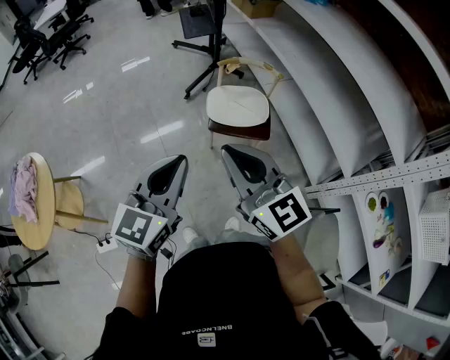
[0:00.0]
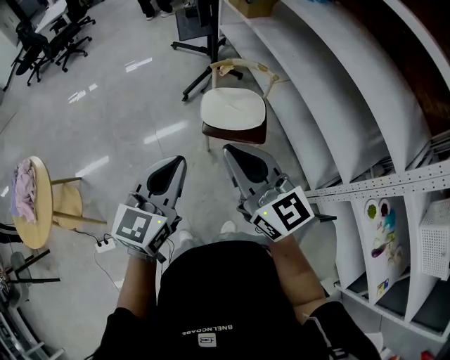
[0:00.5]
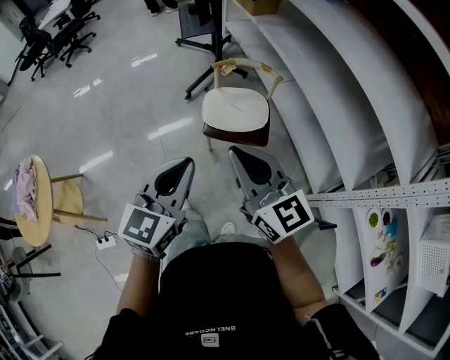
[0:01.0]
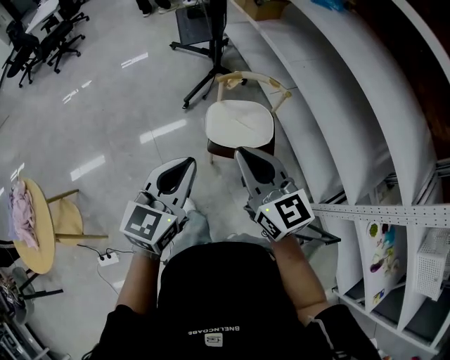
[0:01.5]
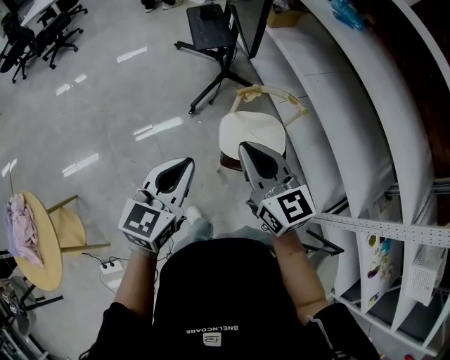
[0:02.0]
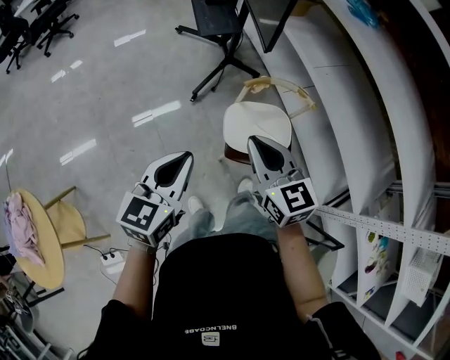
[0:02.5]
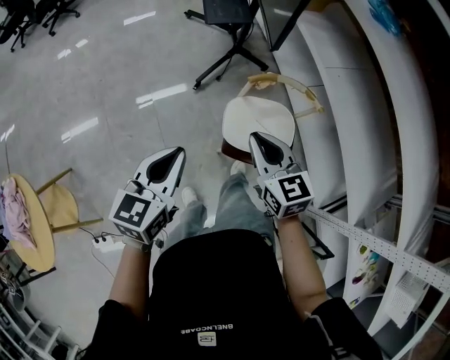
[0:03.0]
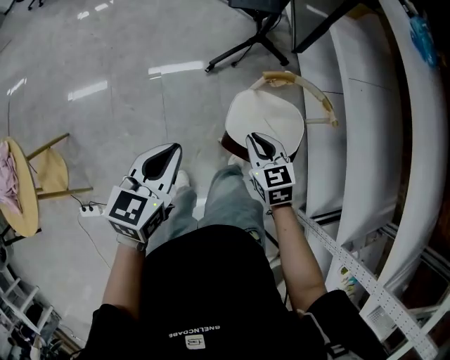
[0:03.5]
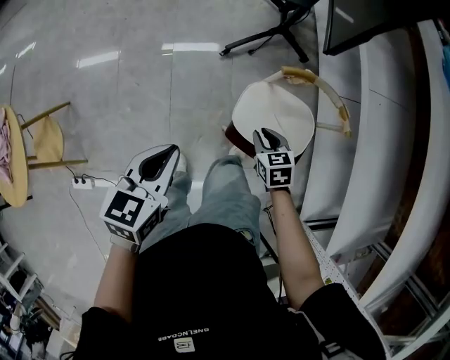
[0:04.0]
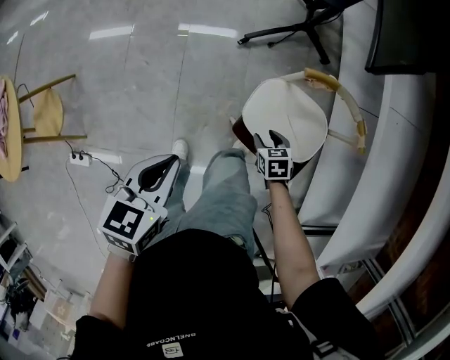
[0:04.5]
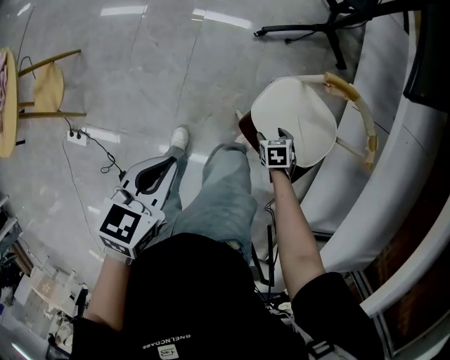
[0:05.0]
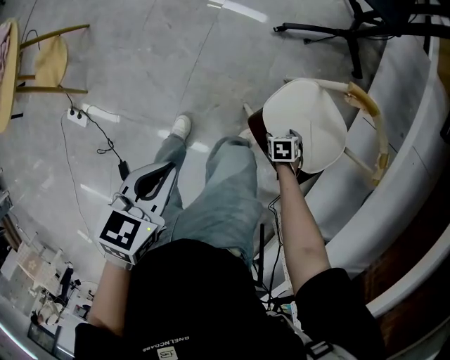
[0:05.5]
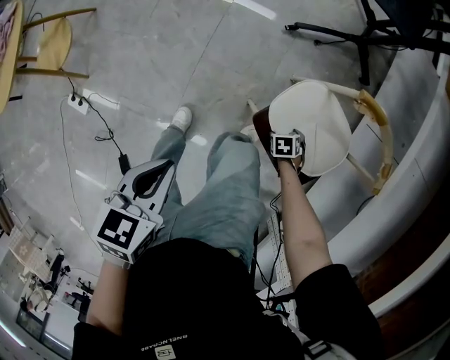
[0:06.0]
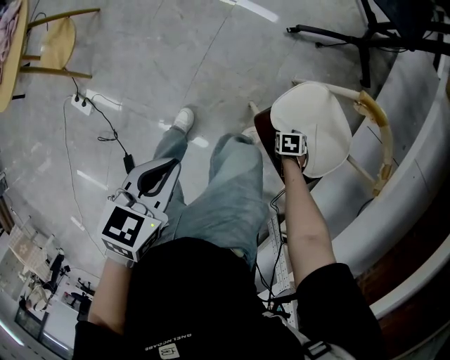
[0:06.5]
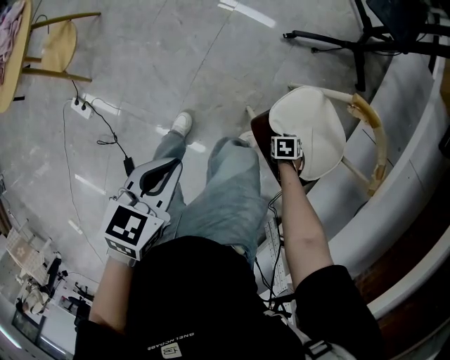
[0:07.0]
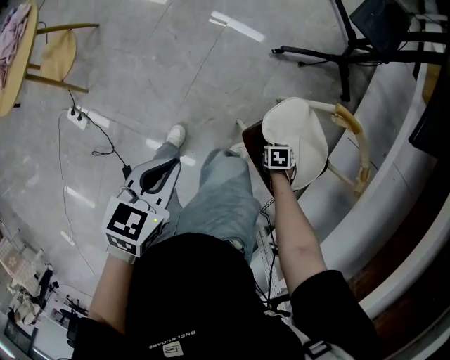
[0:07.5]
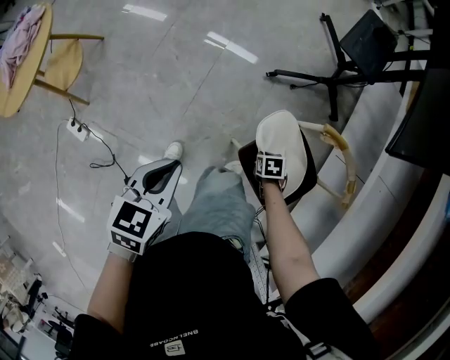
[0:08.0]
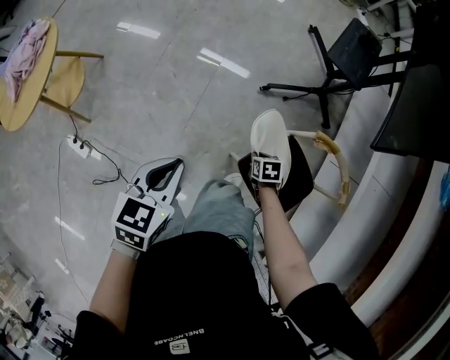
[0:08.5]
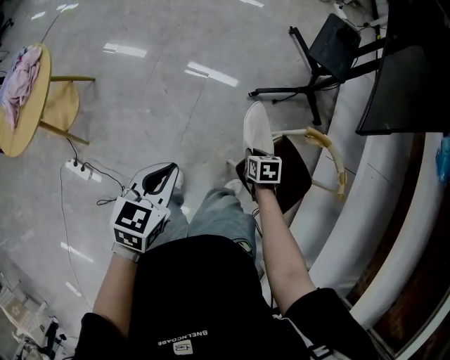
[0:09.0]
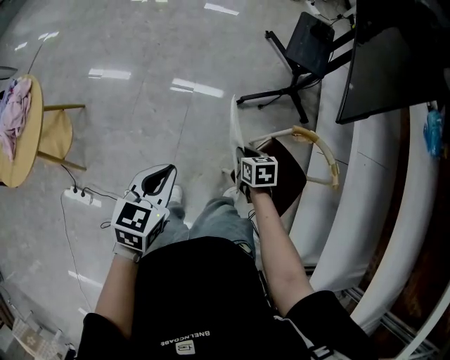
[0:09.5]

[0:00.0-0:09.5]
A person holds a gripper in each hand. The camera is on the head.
0:00.0 to 0:02.0: The grippers both shift forward by some 30 cm.
0:02.0 to 0:04.0: The right gripper shifts about 35 cm downward, and points its fingers about 40 degrees further downward; the left gripper shifts roughly 15 cm downward, and turns by some 30 degrees.
0:04.0 to 0:05.5: The left gripper shifts some 10 cm downward, and changes its angle by about 20 degrees; the right gripper heads downward, covering some 25 cm, tips its fingers downward by about 30 degrees, and opens up.
0:05.5 to 0:07.5: The right gripper closes up.
0:07.5 to 0:09.5: The right gripper heads upward, covering roughly 25 cm, and points its fingers about 30 degrees further upward. The left gripper travels upward by roughly 10 cm.

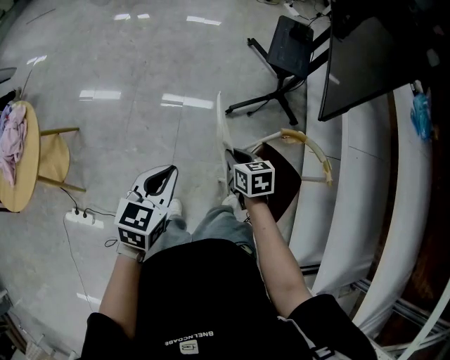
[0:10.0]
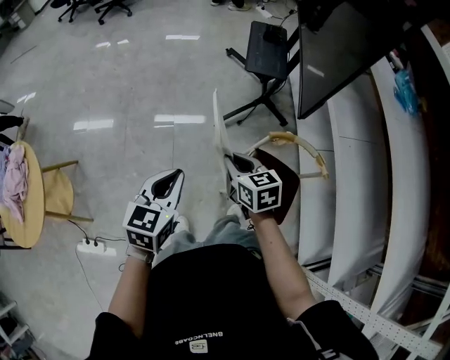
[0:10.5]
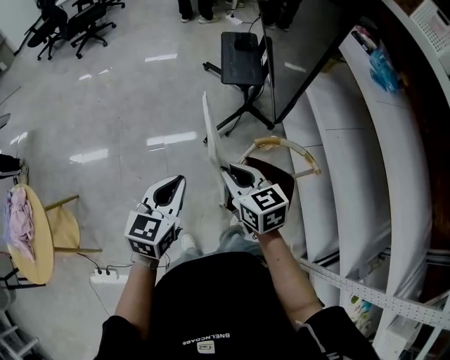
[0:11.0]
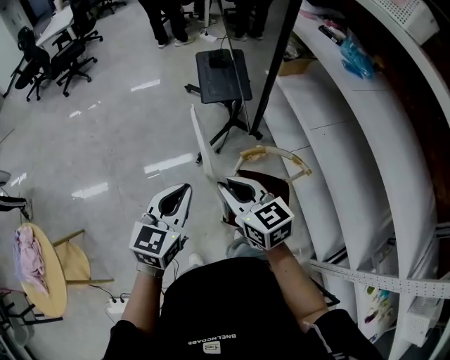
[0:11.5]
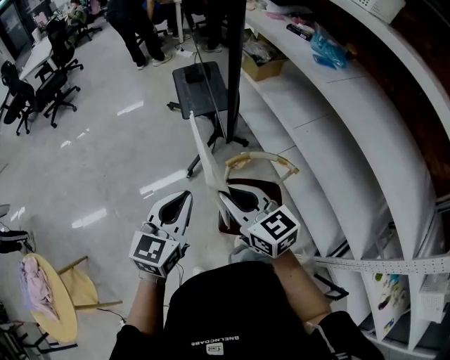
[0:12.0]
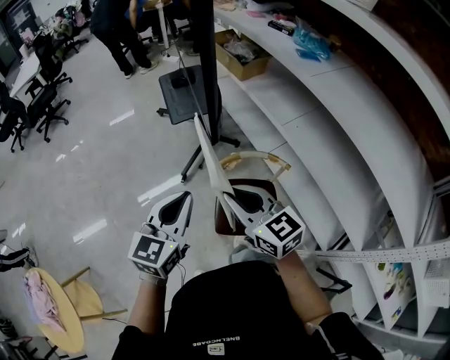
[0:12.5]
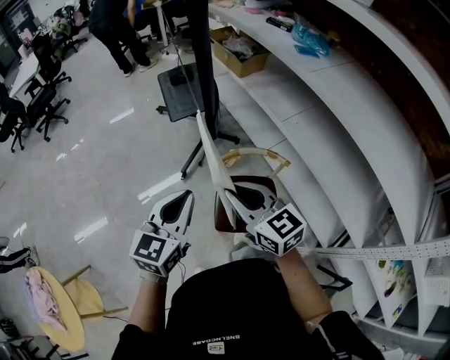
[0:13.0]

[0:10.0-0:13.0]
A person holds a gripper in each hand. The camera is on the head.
0:10.0 to 0:11.5: The right gripper travels upward by some 25 cm, and rotates some 30 degrees; the left gripper heads to the right, upward and forward, covering roughly 20 cm, and rotates roughly 30 degrees.
0:11.5 to 0:13.0: The two grippers go about 10 cm to the right.

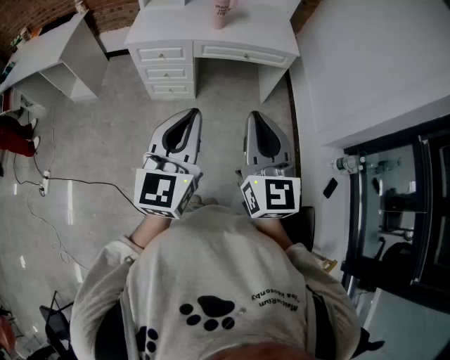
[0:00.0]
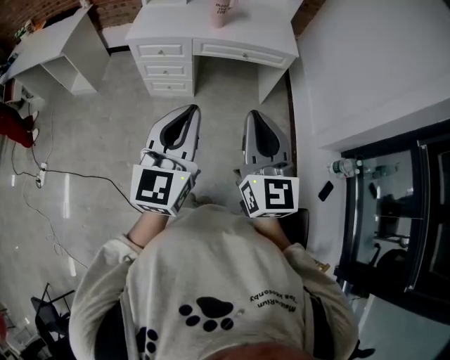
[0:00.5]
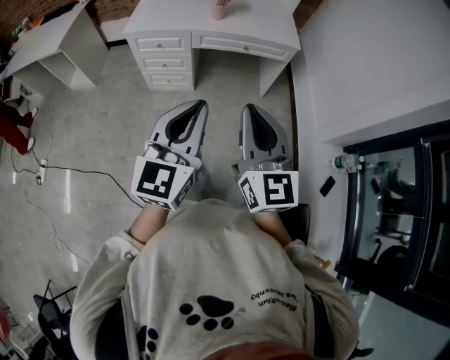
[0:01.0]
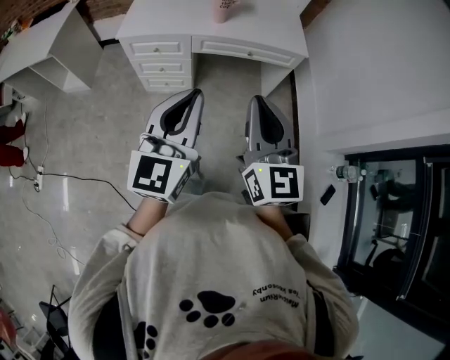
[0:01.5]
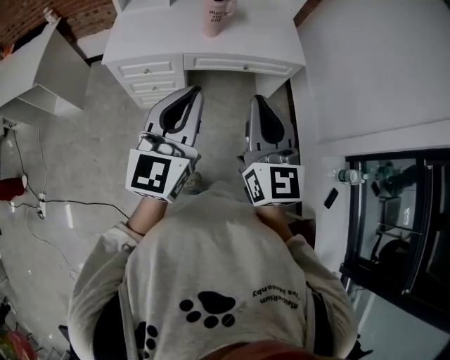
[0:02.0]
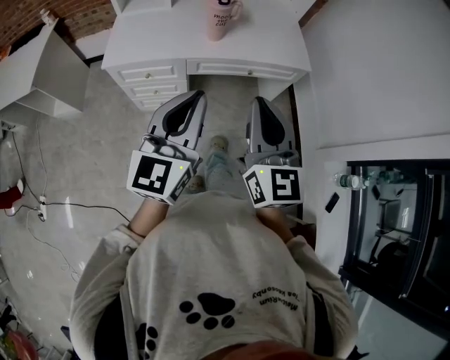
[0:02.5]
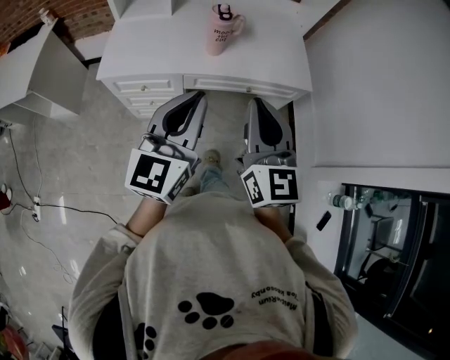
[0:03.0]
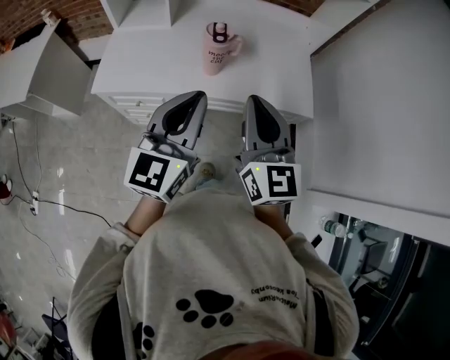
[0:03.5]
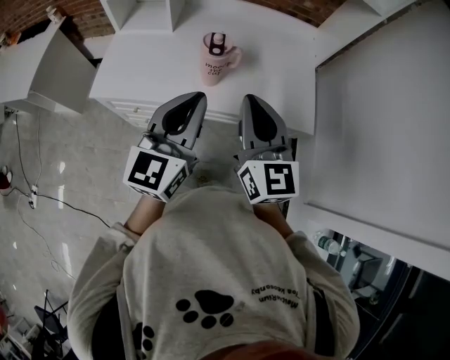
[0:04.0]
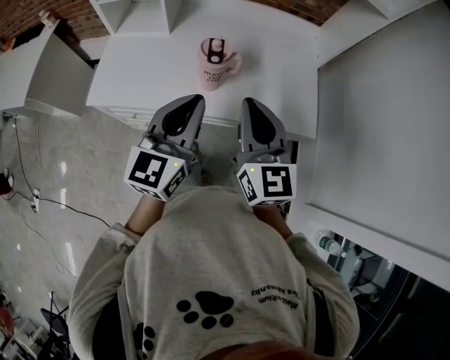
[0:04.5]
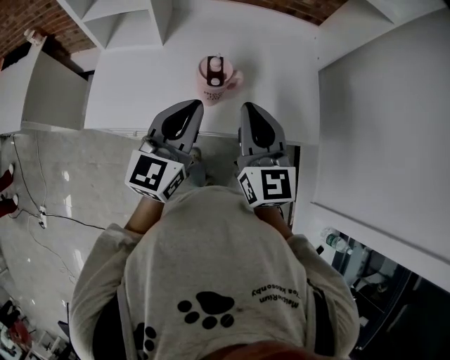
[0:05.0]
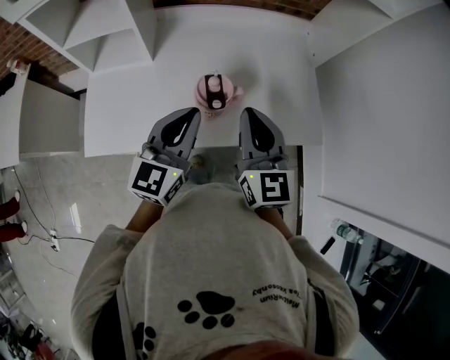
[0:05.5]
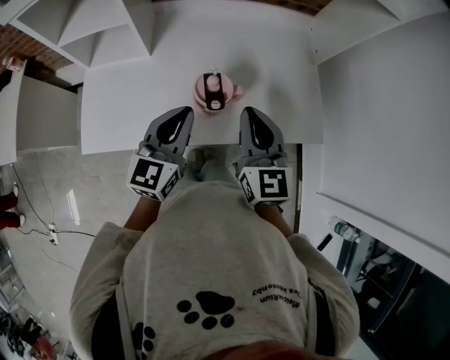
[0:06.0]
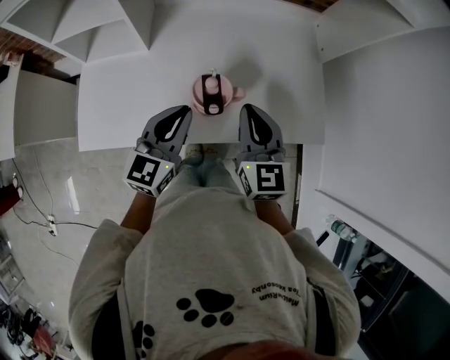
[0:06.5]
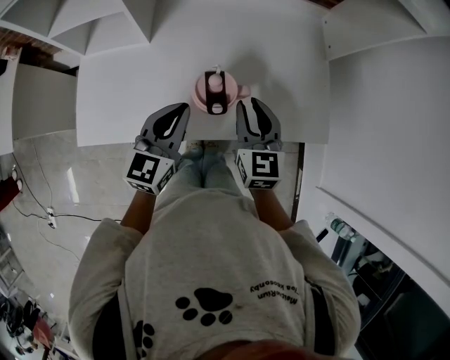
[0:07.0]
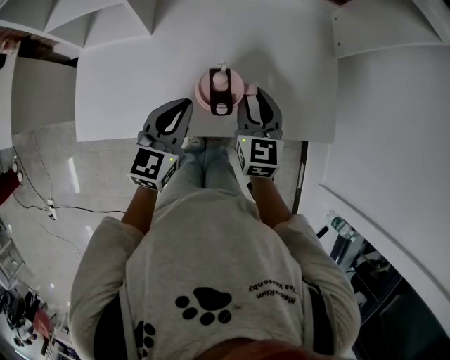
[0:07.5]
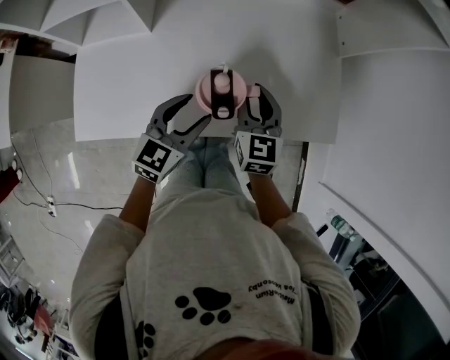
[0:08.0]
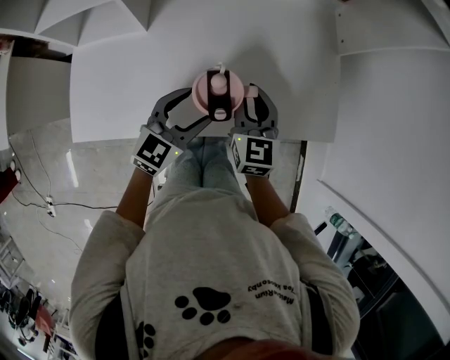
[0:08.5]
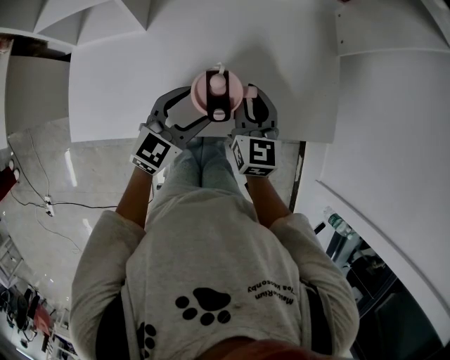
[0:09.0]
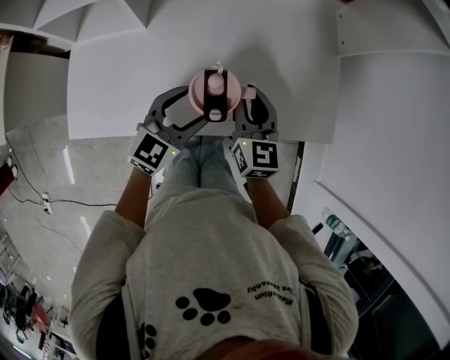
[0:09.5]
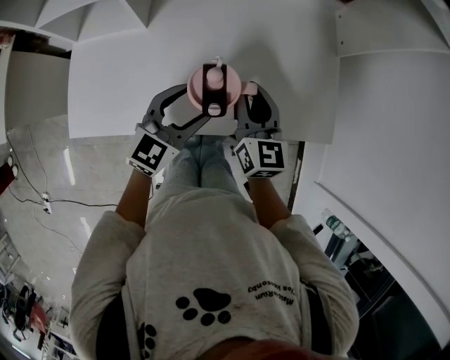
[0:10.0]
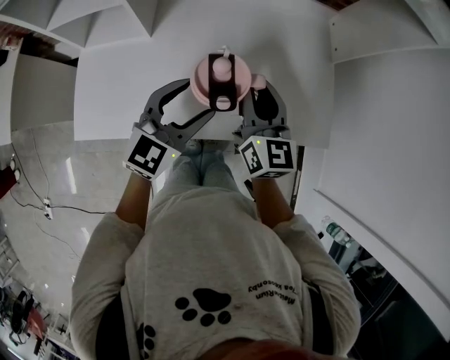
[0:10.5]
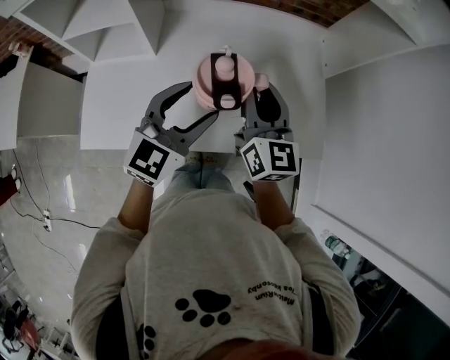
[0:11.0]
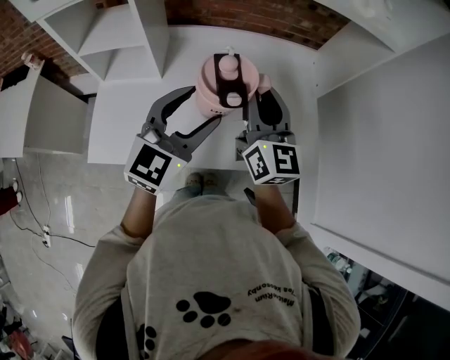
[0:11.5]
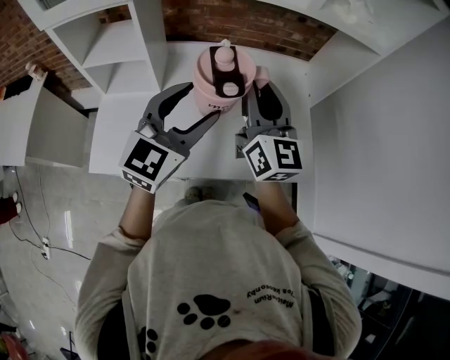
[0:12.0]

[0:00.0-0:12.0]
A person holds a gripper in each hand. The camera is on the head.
0:00.0 to 0:02.0: Both grippers move forward, roughly 25 cm.
0:02.0 to 0:04.0: Both grippers travel together forward, approximately 30 cm.
0:04.0 to 0:06.0: Both grippers travel together forward and downward, some 20 cm.
0:06.0 to 0:08.0: The left gripper moves downward, roughly 10 cm, and opens up. The right gripper goes approximately 15 cm downward and forward, and opens its fingers.
0:08.0 to 0:10.0: There are only small adjustments of the grippers.
0:10.0 to 0:12.0: Both grippers travel together upward, about 25 cm. The right gripper swivels roughly 20 degrees.

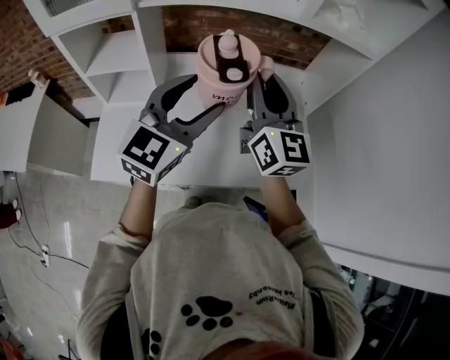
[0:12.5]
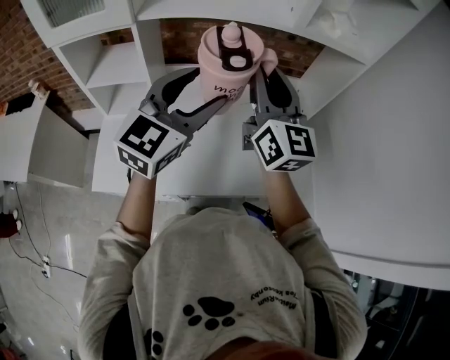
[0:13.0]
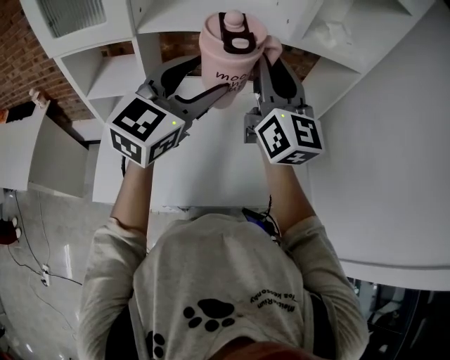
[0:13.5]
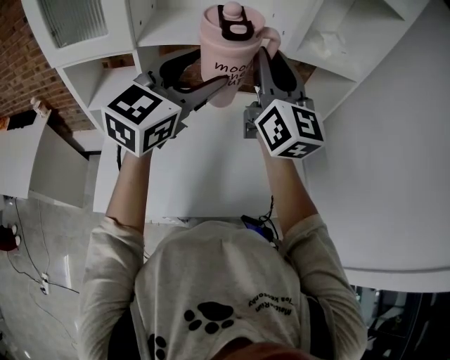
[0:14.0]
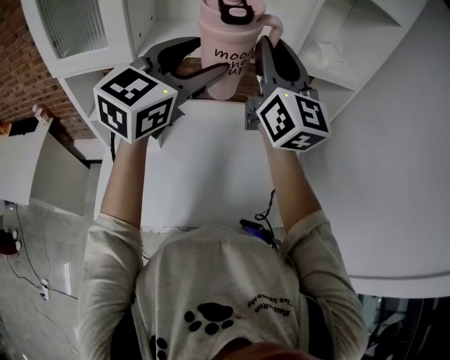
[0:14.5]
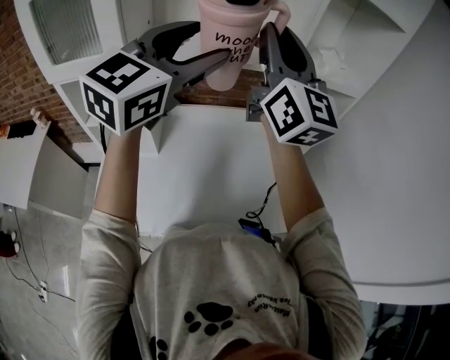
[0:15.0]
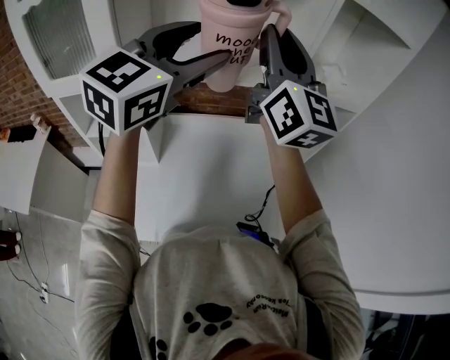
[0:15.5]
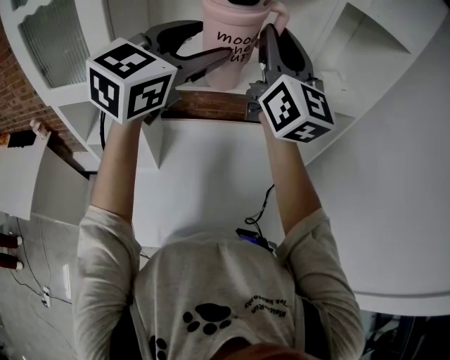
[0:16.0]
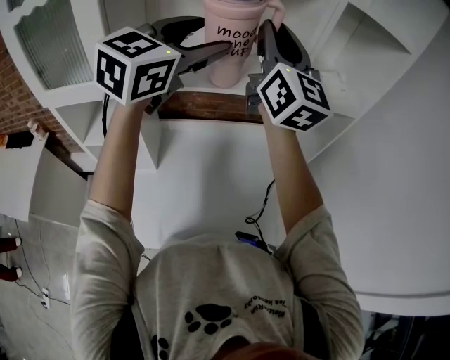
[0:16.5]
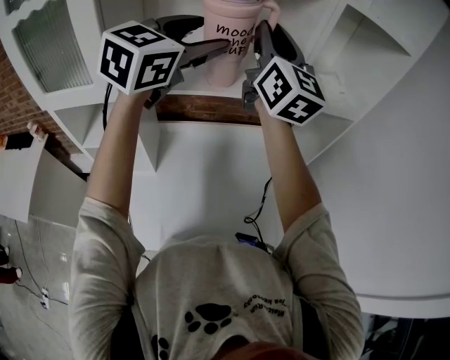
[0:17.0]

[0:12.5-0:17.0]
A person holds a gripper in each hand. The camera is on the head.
0:12.5 to 0:14.5: The left gripper heads upward and forward, covering some 15 cm. Meanwhile the right gripper shifts roughly 15 cm upward.
0:14.5 to 0:17.0: Both grippers move forward and upward, roughly 15 cm.
